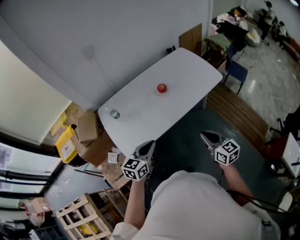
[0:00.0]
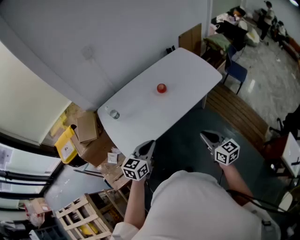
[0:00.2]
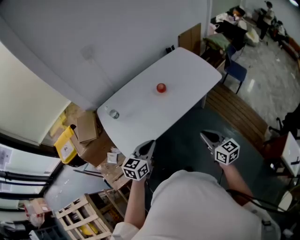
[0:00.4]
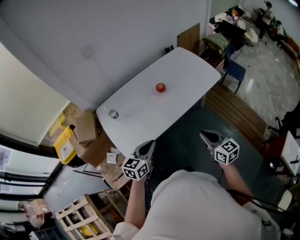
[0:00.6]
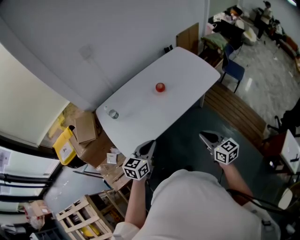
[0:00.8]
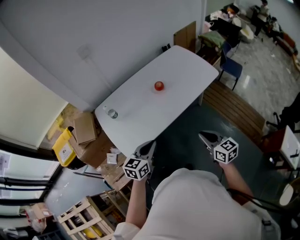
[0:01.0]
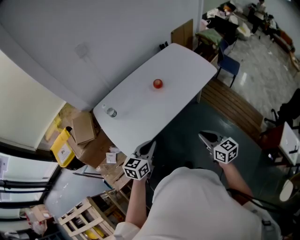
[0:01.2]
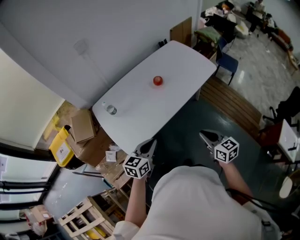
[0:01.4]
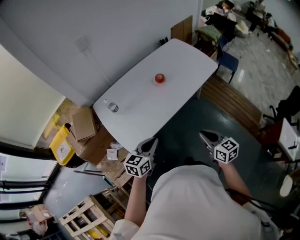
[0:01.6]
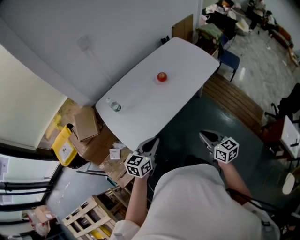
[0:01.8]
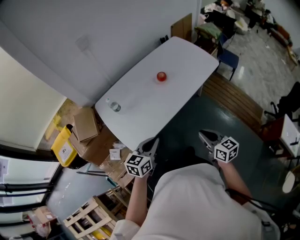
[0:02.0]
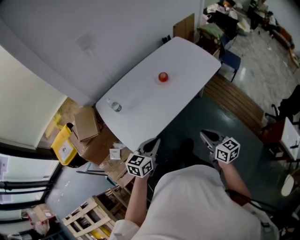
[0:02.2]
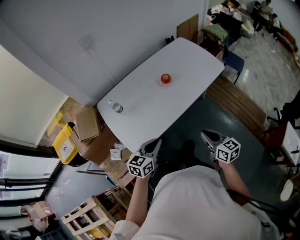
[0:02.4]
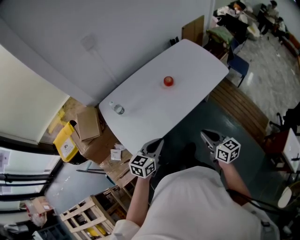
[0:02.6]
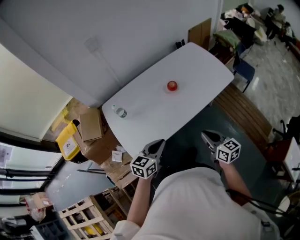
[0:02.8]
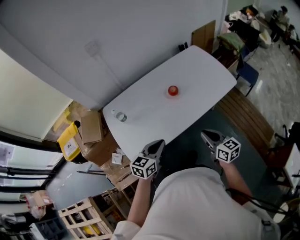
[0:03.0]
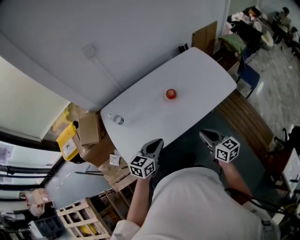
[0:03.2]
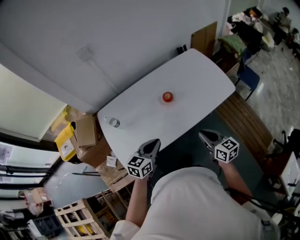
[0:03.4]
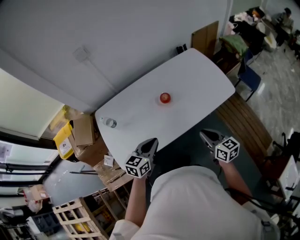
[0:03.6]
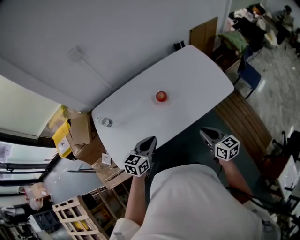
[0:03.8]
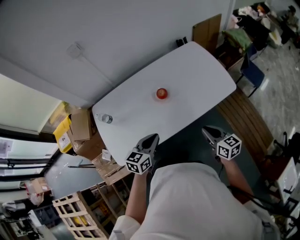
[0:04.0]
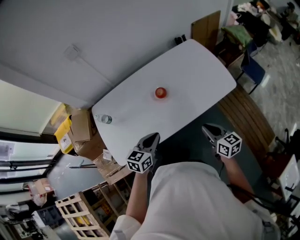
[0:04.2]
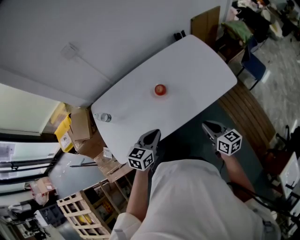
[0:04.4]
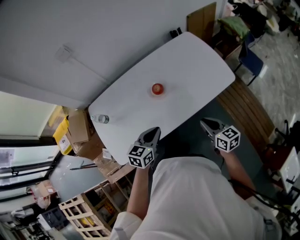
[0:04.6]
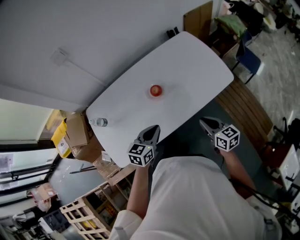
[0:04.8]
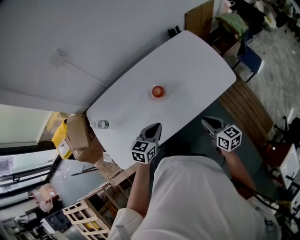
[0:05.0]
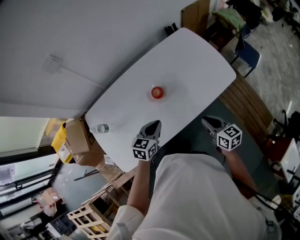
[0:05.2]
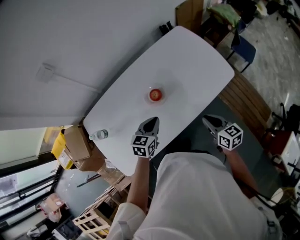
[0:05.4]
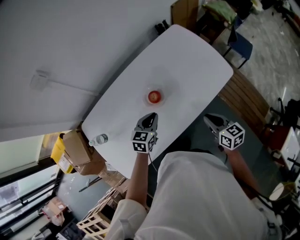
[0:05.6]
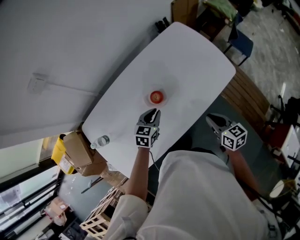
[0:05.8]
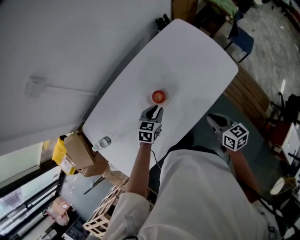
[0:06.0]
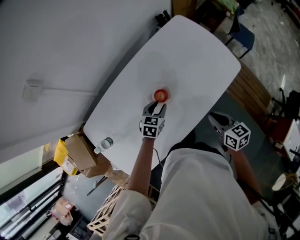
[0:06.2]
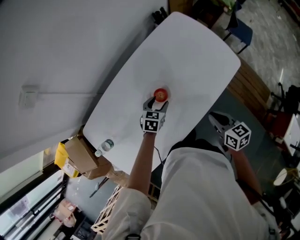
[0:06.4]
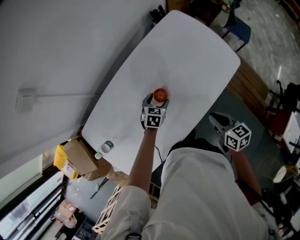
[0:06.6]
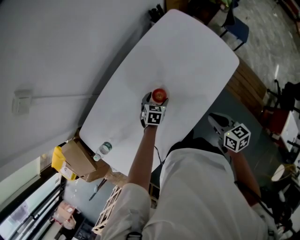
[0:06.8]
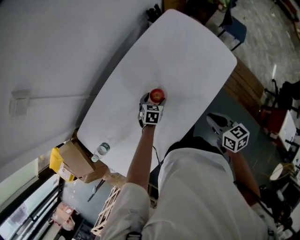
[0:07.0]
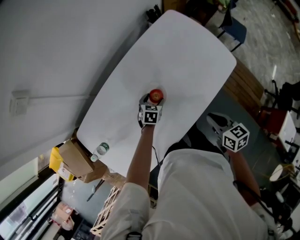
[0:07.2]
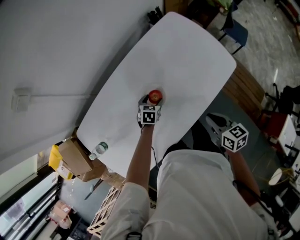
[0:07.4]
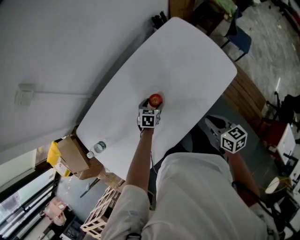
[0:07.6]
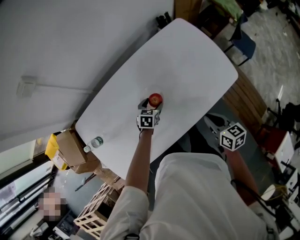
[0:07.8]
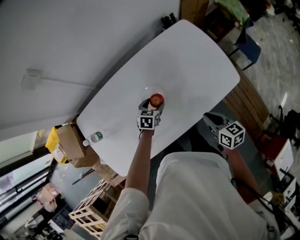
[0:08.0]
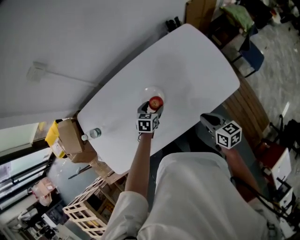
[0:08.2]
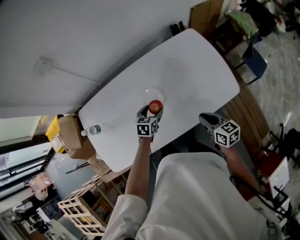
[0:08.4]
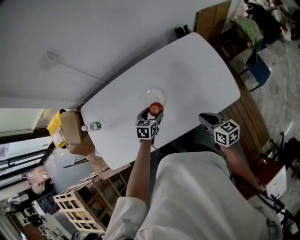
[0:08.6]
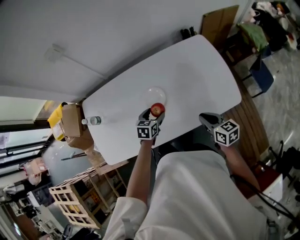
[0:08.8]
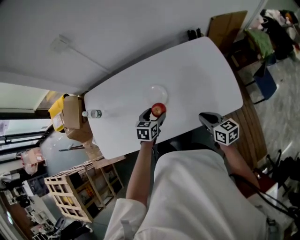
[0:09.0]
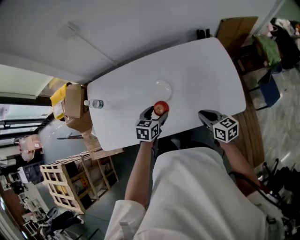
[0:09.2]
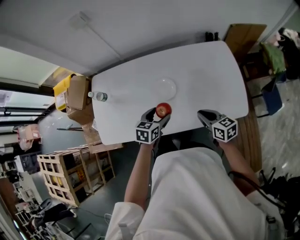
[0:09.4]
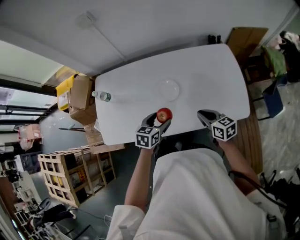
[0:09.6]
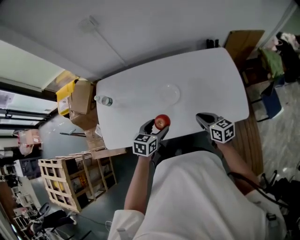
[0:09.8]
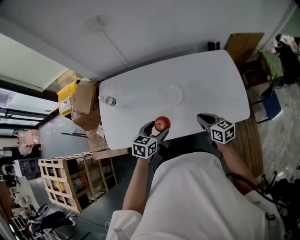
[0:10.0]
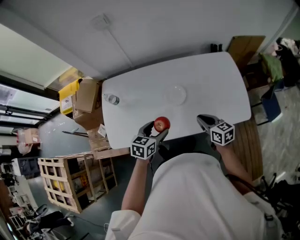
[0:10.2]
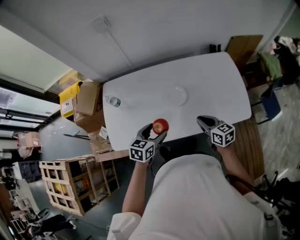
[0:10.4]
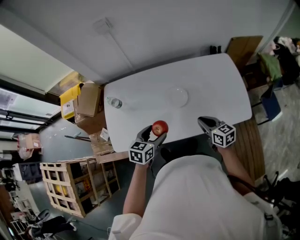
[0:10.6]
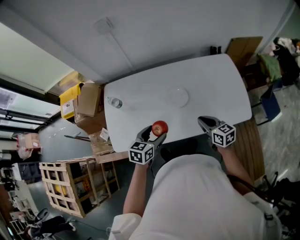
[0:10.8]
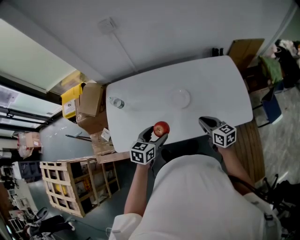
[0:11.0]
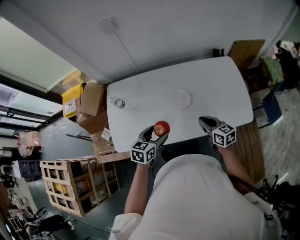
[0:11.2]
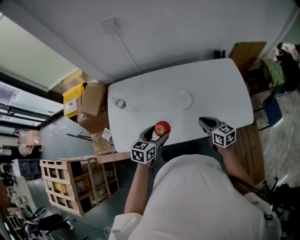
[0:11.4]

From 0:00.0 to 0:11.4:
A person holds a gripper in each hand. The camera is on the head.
From 0:00.0 to 0:01.4: The right gripper ends up about 5 cm from where it was.
From 0:01.4 to 0:02.8: The right gripper heads forward, covering some 10 cm. The left gripper heads forward, covering some 5 cm.
From 0:02.8 to 0:04.2: The grippers both shift forward and to the right by approximately 15 cm.
From 0:04.2 to 0:05.6: The right gripper heads forward, covering some 10 cm; the left gripper is displaced forward and downward by roughly 20 cm.
From 0:05.6 to 0:07.2: The left gripper heads downward and forward, covering some 20 cm, and opens.
From 0:07.2 to 0:08.6: The left gripper travels upward and backward by approximately 10 cm, and changes its angle by roughly 30 degrees. The right gripper shifts approximately 10 cm forward and to the right, and swivels some 20 degrees.
From 0:08.6 to 0:10.0: The right gripper shifts about 10 cm to the left; the left gripper goes approximately 15 cm backward, upward and to the left.
From 0:10.0 to 0:11.4: The left gripper moves to the left, about 5 cm. The right gripper moves some 5 cm.

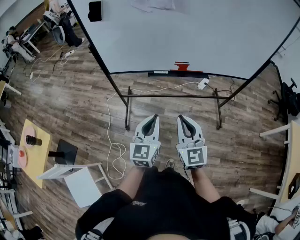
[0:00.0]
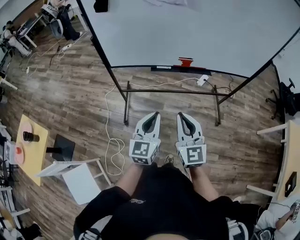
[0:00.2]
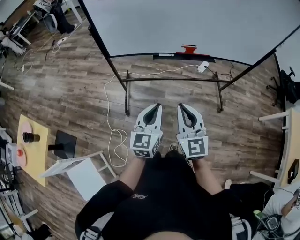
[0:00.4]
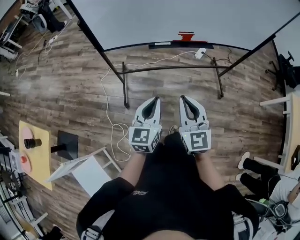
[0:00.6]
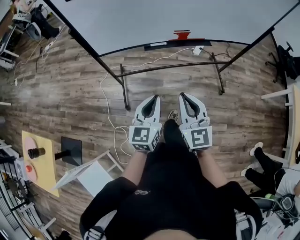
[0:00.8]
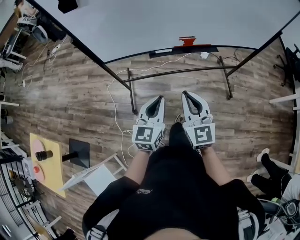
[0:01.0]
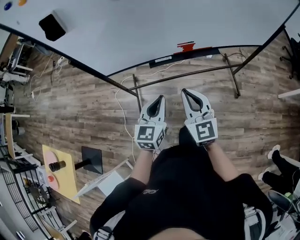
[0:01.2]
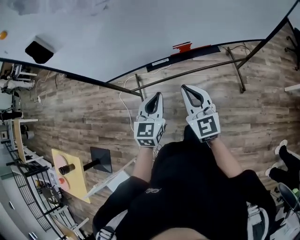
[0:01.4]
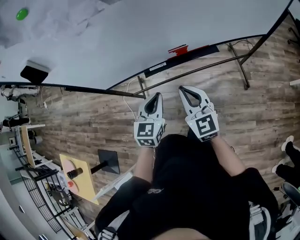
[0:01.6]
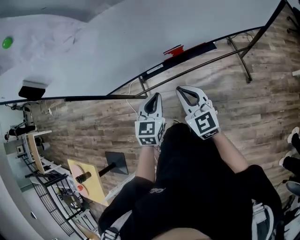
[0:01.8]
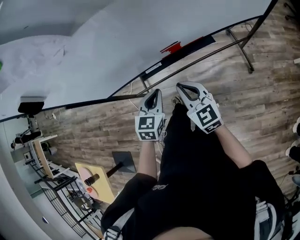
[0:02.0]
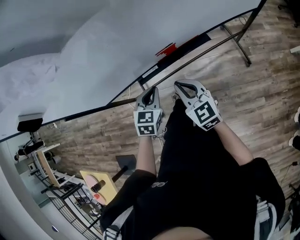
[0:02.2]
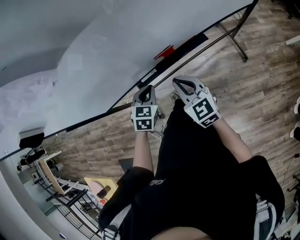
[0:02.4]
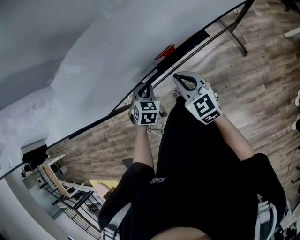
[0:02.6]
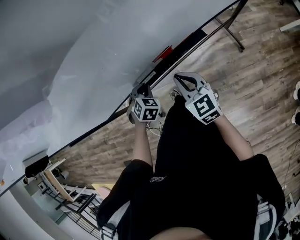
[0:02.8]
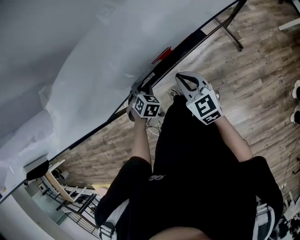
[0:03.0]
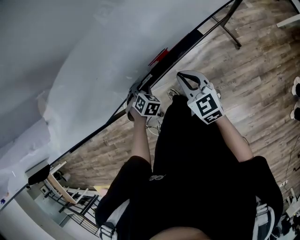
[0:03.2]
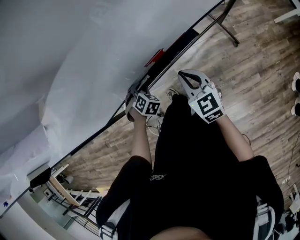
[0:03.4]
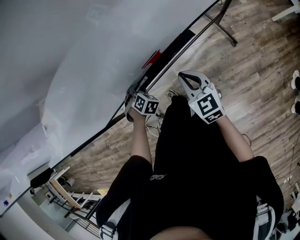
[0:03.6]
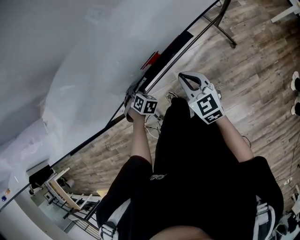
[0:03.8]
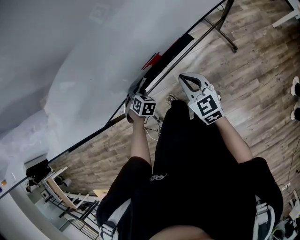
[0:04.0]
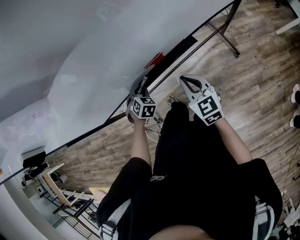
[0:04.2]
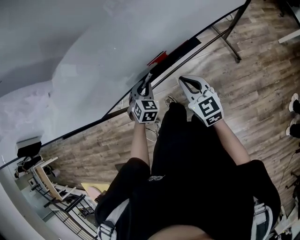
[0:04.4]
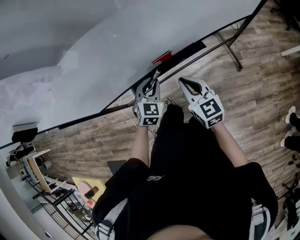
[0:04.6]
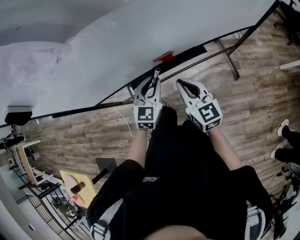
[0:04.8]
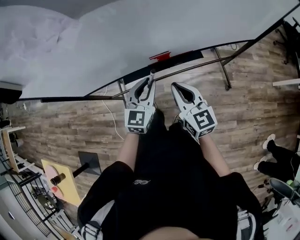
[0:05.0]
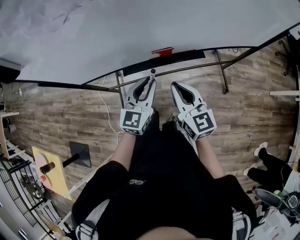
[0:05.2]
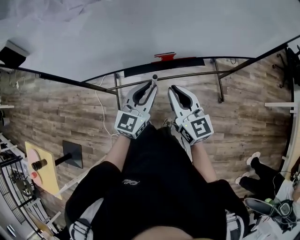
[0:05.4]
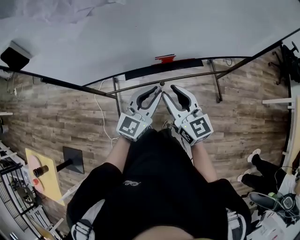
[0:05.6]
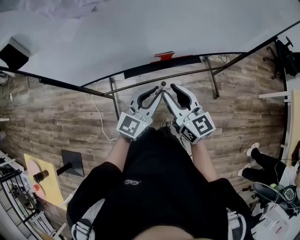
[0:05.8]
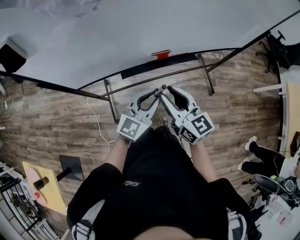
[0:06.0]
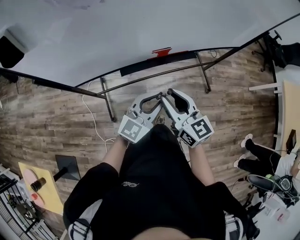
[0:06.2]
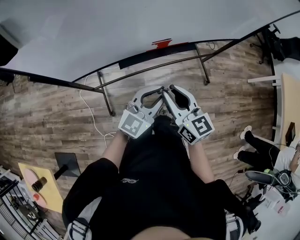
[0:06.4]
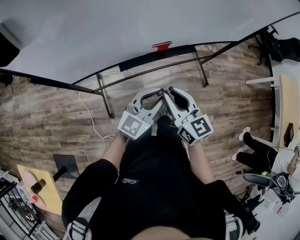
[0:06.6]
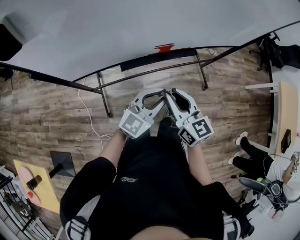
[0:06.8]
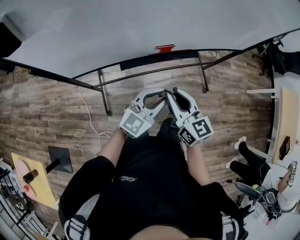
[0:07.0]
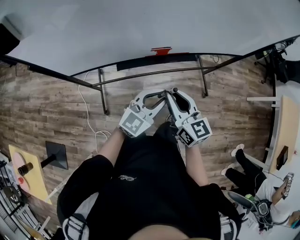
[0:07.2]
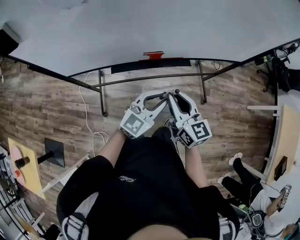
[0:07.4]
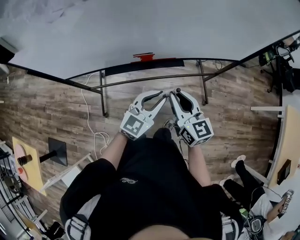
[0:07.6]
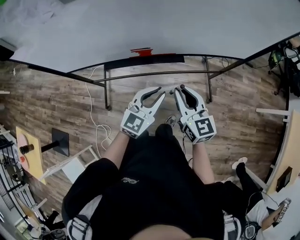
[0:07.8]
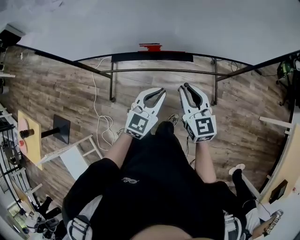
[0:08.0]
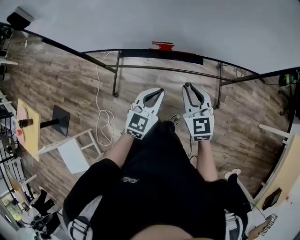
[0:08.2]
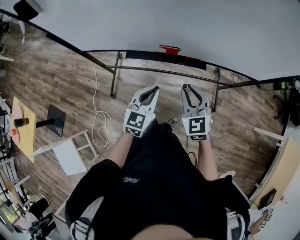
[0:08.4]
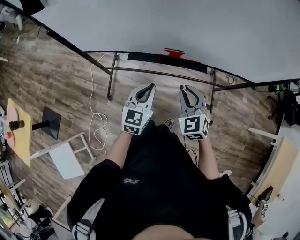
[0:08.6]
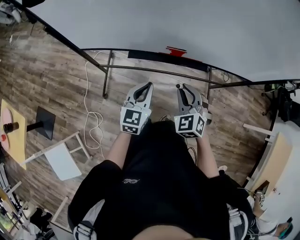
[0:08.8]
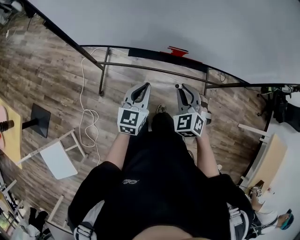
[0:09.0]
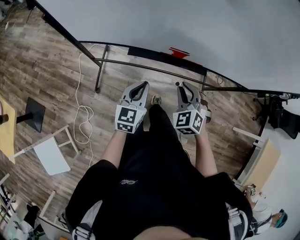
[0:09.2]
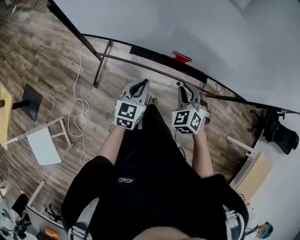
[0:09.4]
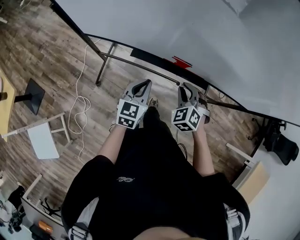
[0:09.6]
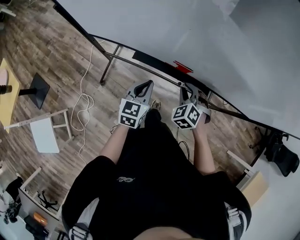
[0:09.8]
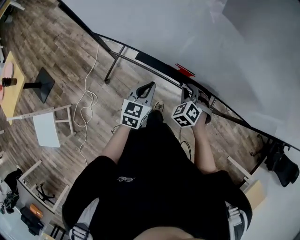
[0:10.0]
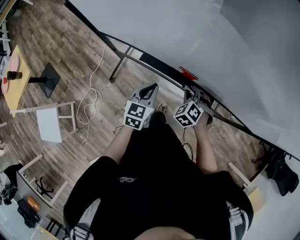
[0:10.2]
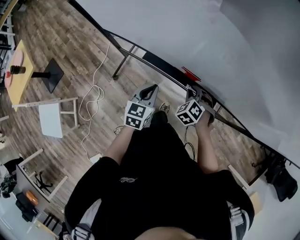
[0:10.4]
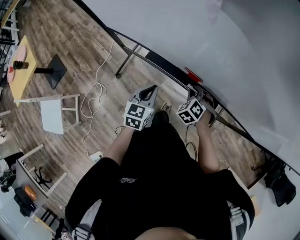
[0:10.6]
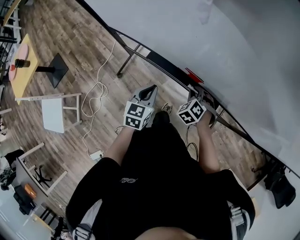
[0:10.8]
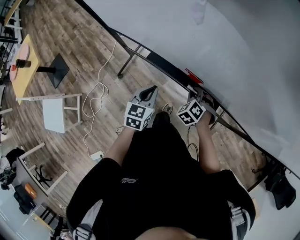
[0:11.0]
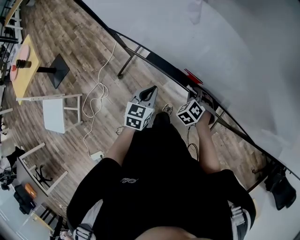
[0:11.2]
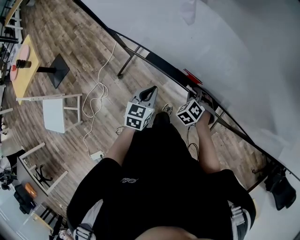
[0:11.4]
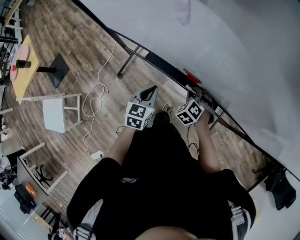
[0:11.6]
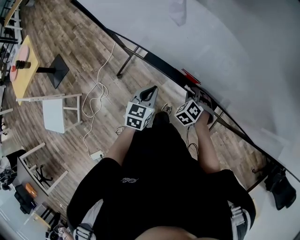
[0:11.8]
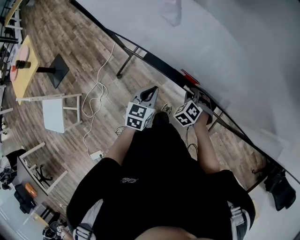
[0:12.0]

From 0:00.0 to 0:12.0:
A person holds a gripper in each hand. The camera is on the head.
From 0:00.0 to 0:01.6: Both grippers travel together forward, approximately 25 cm. The left gripper turns by some 20 degrees.
From 0:01.6 to 0:03.0: The left gripper goes some 25 cm downward and forward, and tilts its fingers about 40 degrees downward. Meanwhile the right gripper moves forward and downward, some 15 cm.
From 0:03.0 to 0:04.4: The right gripper moves roughly 5 cm; the left gripper ends up approximately 5 cm from where it was.
From 0:04.4 to 0:06.0: The left gripper is displaced upward and backward by some 25 cm, and tilts its fingers approximately 40 degrees upward, while the right gripper shifts some 15 cm upward, backward and to the left, and opens.
From 0:06.0 to 0:07.6: The grippers both shift to the right by approximately 15 cm.
From 0:07.6 to 0:09.0: The right gripper shifts roughly 15 cm to the left and downward, and rolls counterclockwise, seen from behind, by about 60 degrees, while the left gripper travels to the left by approximately 20 cm, and rotates some 40 degrees.
From 0:09.0 to 0:10.4: The right gripper moves forward and downward, about 20 cm, and rotates roughly 30 degrees, while the left gripper is displaced forward and downward by about 10 cm, and swivels some 20 degrees.
From 0:10.4 to 0:12.0: There are only small adjustments of the grippers.
